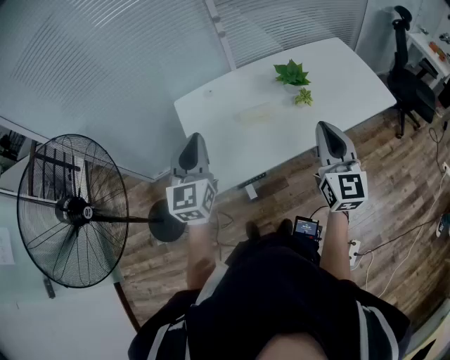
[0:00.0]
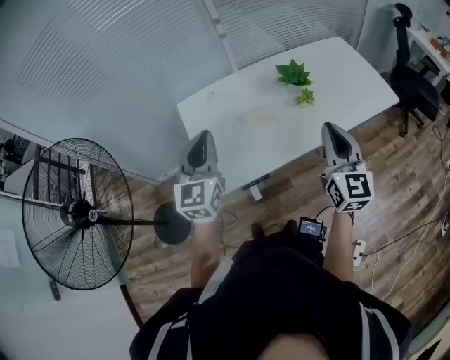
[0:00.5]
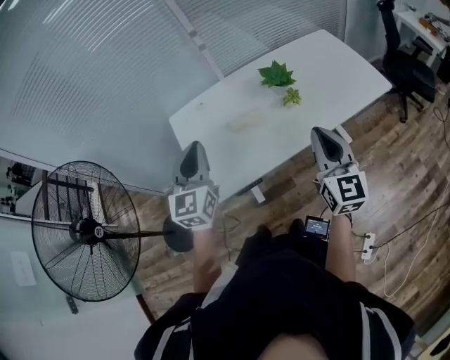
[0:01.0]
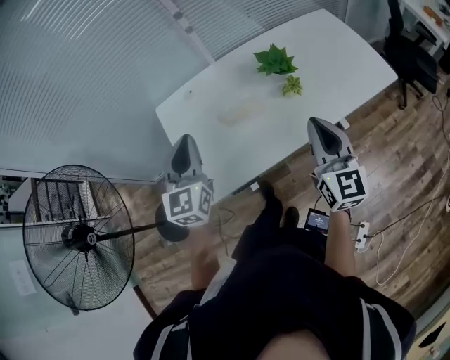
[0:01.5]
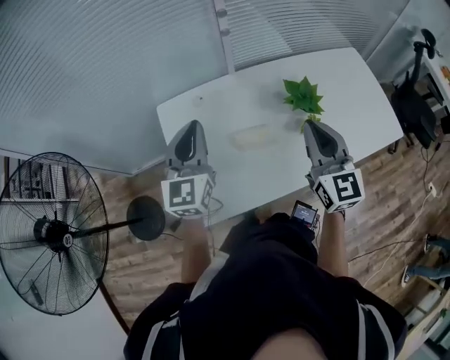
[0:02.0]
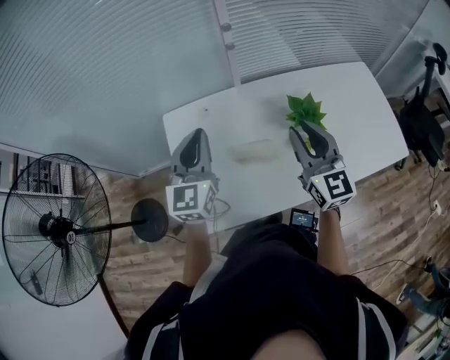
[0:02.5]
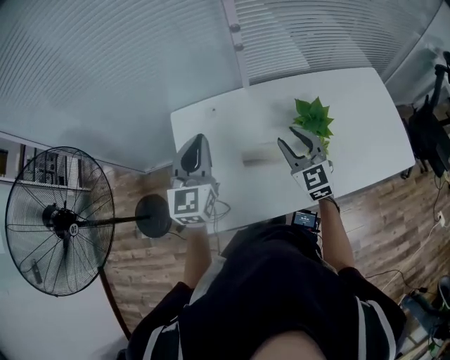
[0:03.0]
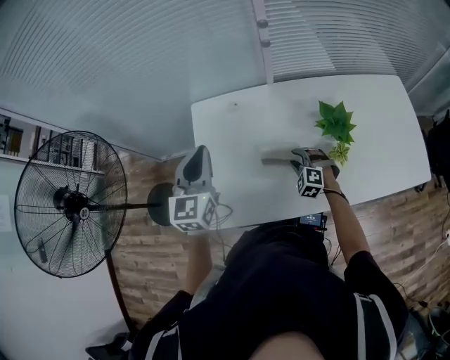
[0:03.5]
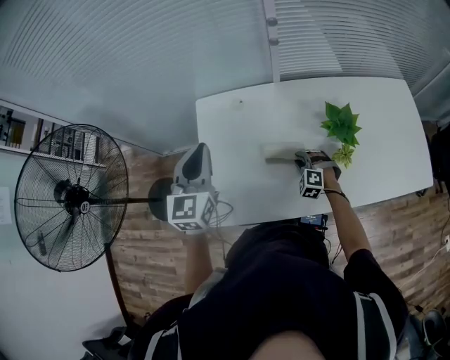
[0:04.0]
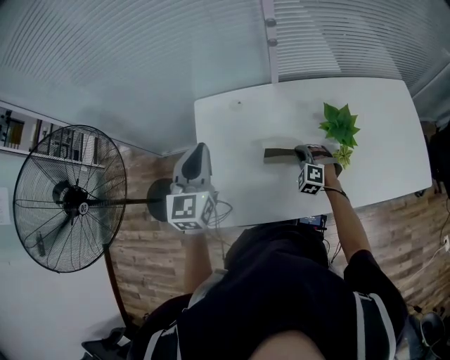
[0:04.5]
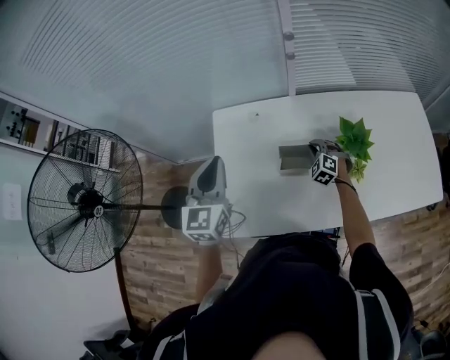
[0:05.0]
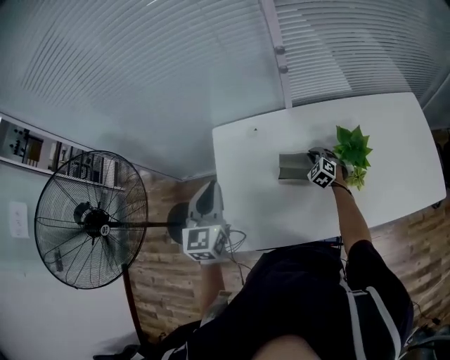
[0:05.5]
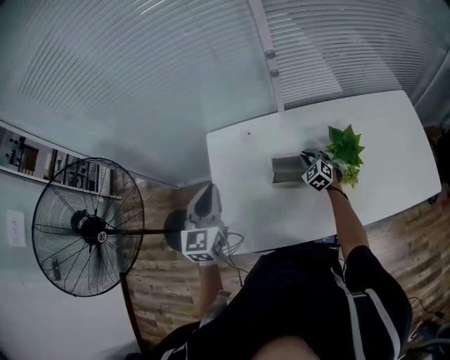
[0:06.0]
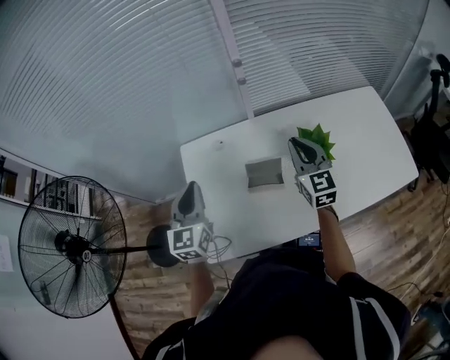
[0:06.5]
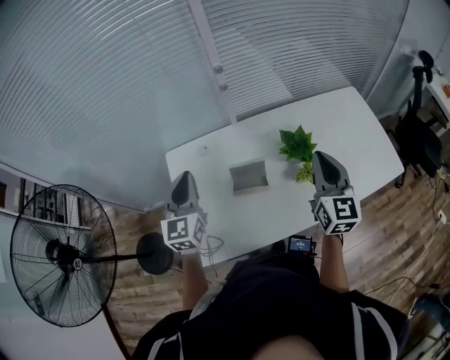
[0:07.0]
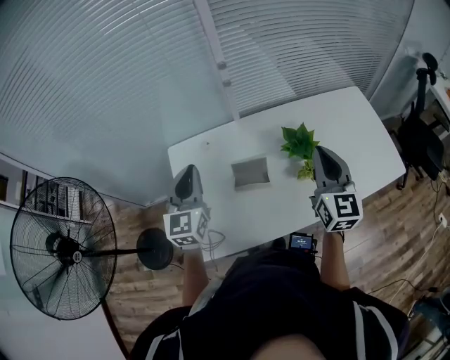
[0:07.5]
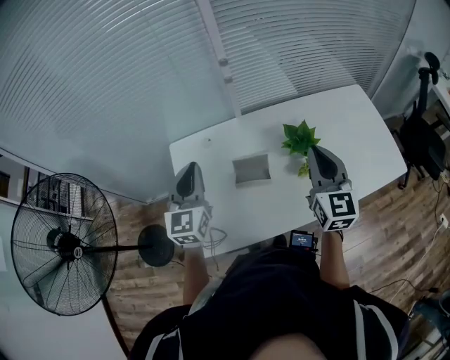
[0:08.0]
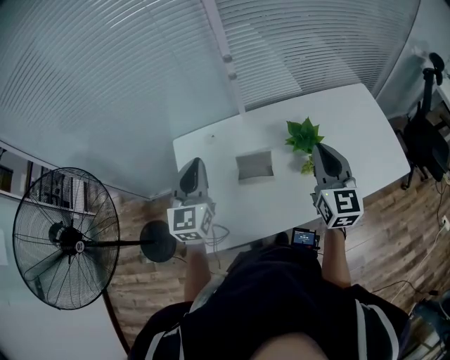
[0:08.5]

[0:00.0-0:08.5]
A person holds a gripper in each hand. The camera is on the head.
0:00.0 to 0:02.0: The two grippers go about 20 cm forward.
0:02.0 to 0:04.0: The right gripper is displaced downward by roughly 35 cm, tilts its fingers about 50 degrees downward, and opens, while the left gripper shifts approximately 5 cm to the left.
0:04.0 to 0:06.5: The right gripper shifts some 30 cm upward, and tips its fingers upward by approximately 40 degrees.
0:06.5 to 0:08.5: The right gripper is displaced backward, to the right and upward by roughly 15 cm, while the left gripper is displaced to the right by approximately 5 cm.

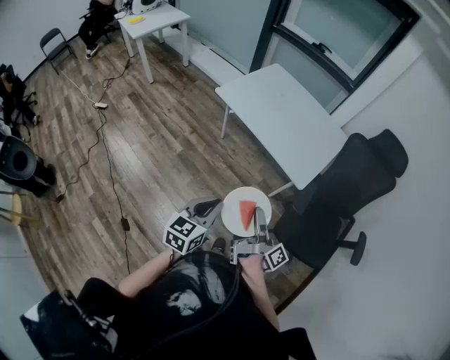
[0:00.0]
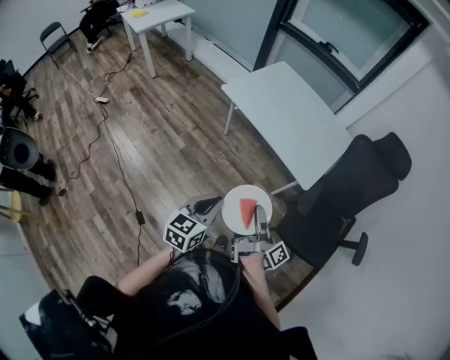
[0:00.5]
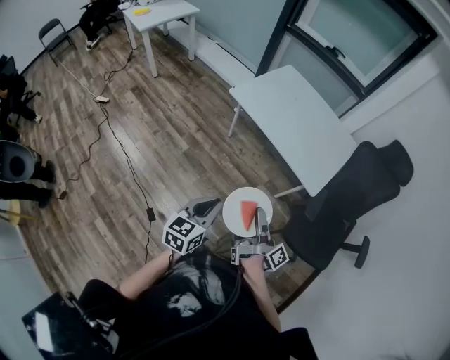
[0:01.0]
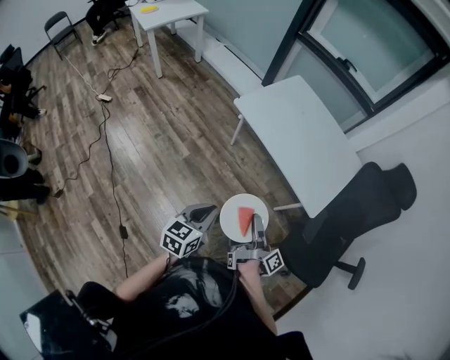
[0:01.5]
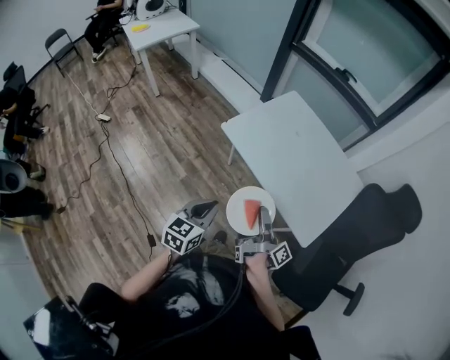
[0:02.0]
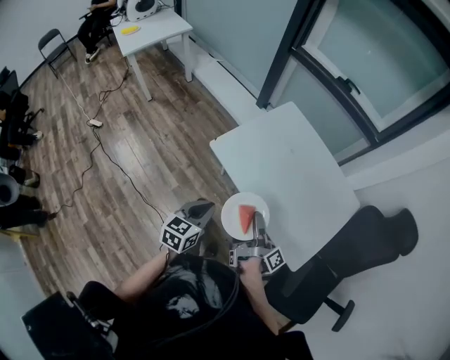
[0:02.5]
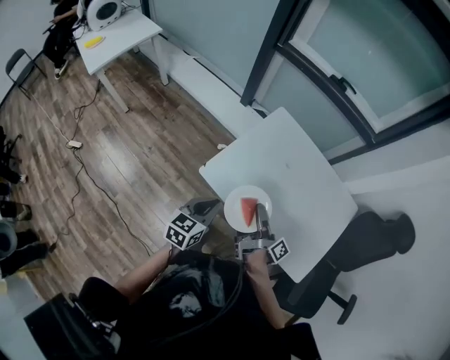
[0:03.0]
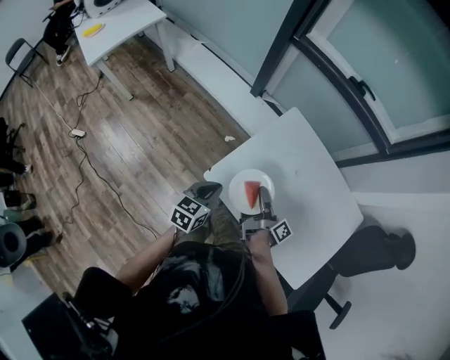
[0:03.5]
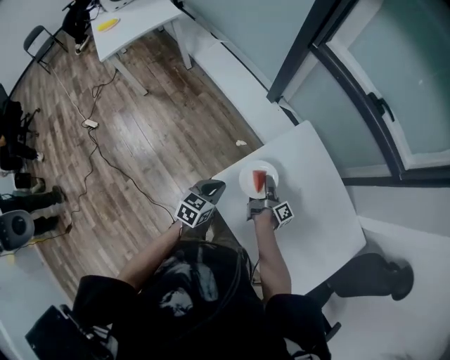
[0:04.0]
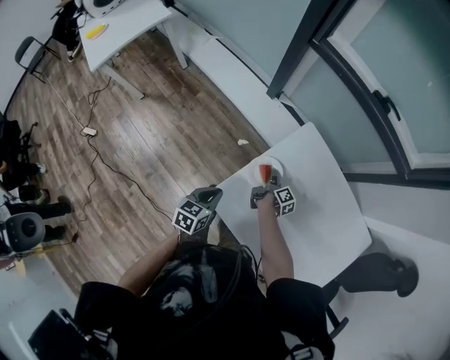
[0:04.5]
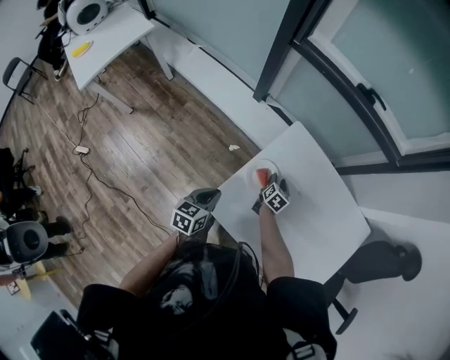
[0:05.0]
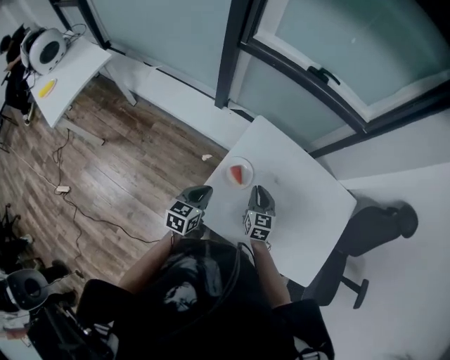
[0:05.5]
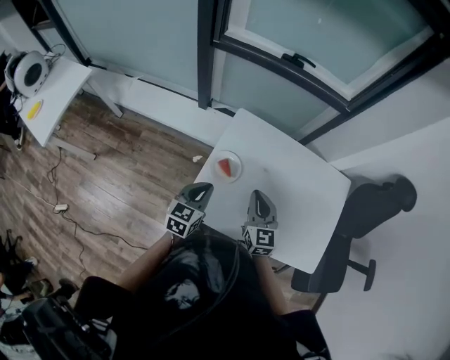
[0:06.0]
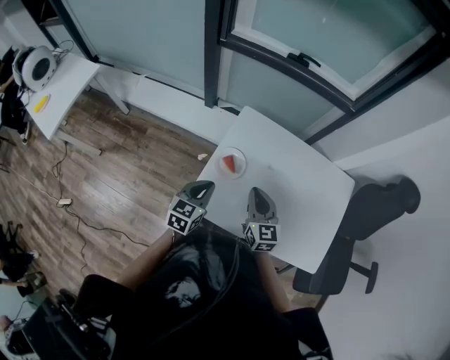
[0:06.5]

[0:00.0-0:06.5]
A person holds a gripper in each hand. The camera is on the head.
0:00.0 to 0:02.0: The left gripper shifts by some 25 cm.
0:02.0 to 0:04.5: The left gripper ends up approximately 50 cm from where it was, and swivels about 20 degrees.
0:04.5 to 0:06.5: The left gripper travels upward by about 10 cm, and changes its angle by roughly 30 degrees.

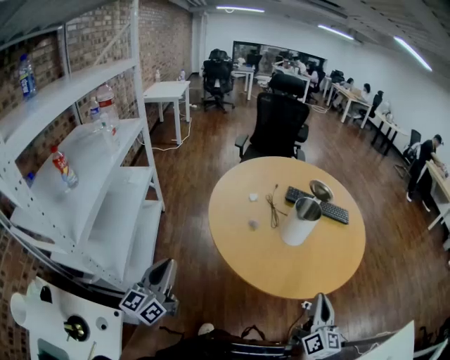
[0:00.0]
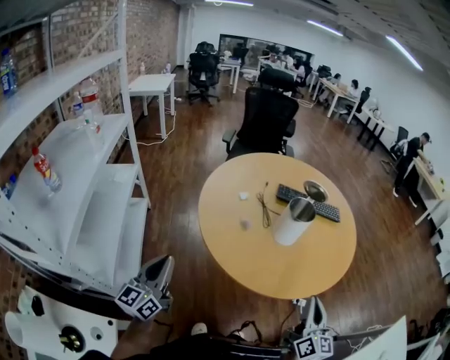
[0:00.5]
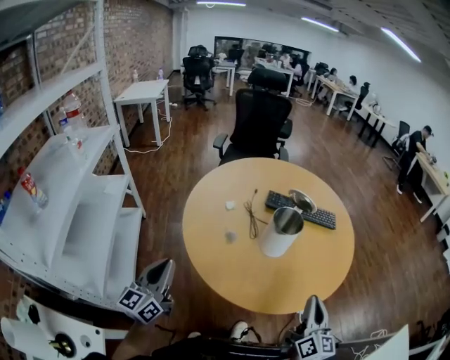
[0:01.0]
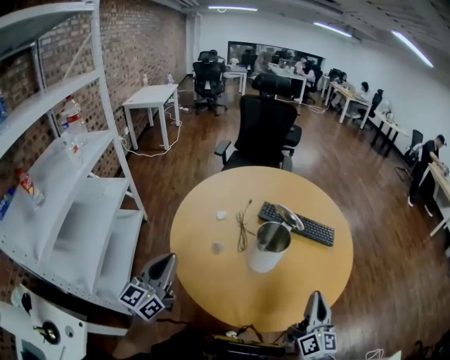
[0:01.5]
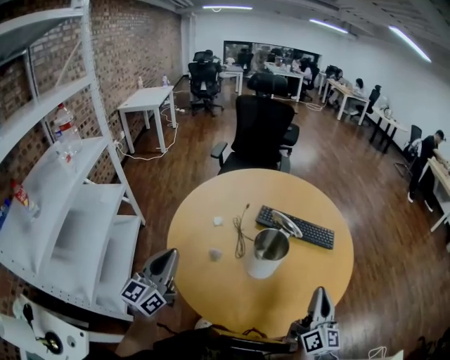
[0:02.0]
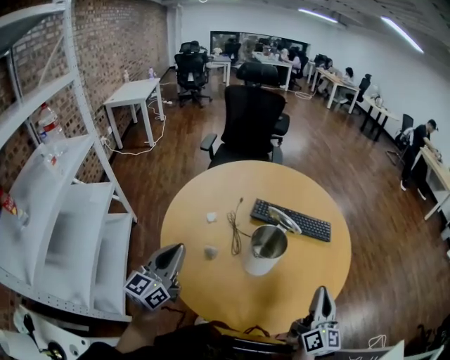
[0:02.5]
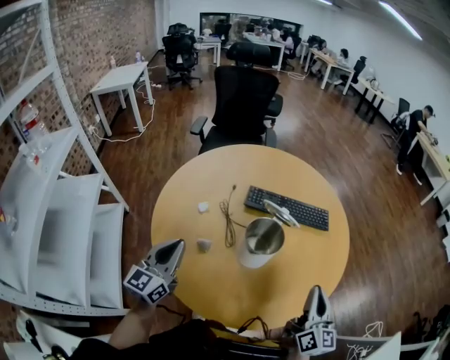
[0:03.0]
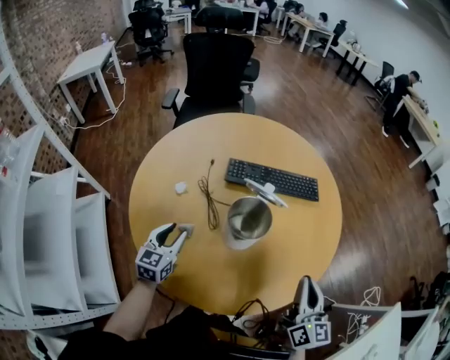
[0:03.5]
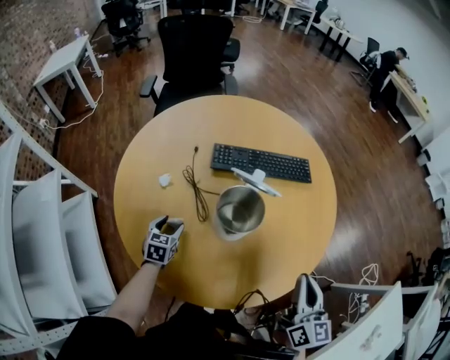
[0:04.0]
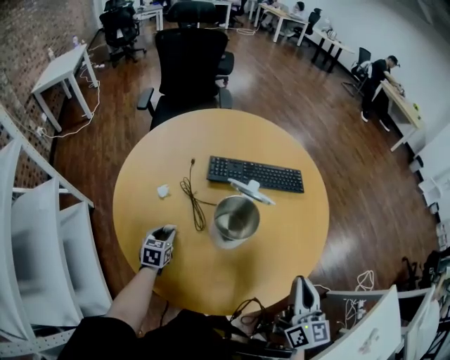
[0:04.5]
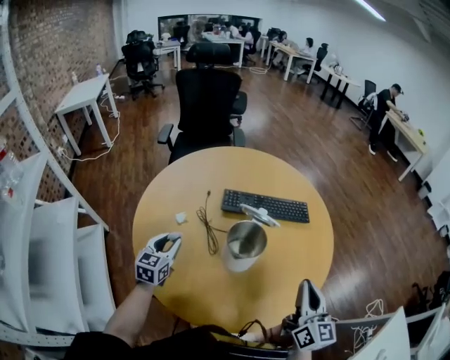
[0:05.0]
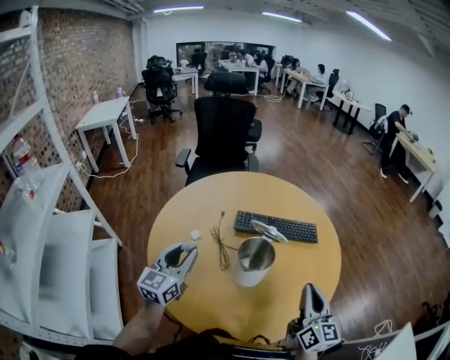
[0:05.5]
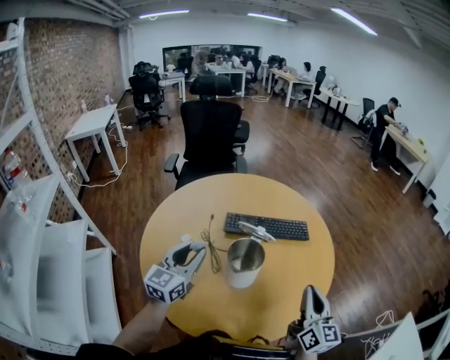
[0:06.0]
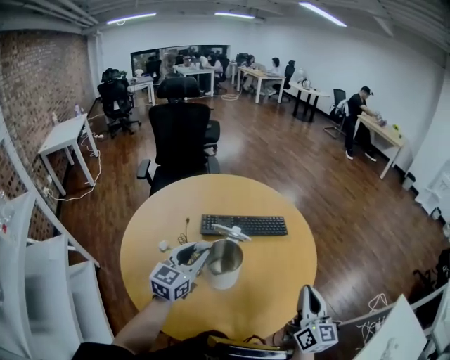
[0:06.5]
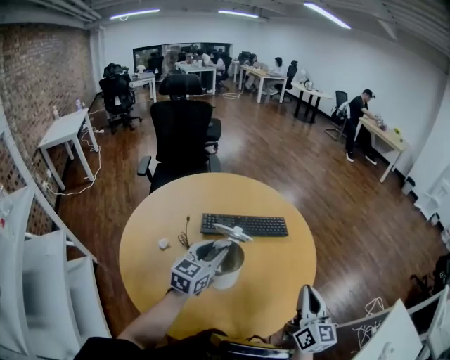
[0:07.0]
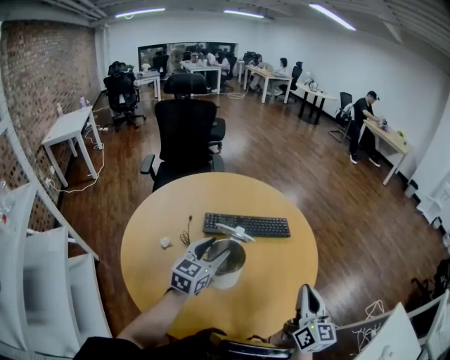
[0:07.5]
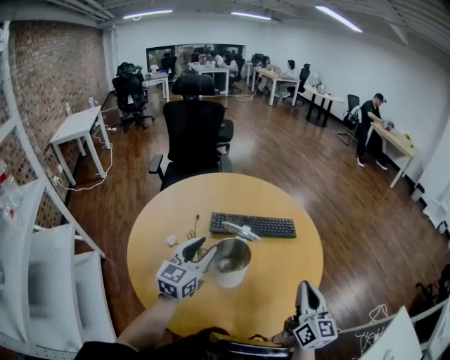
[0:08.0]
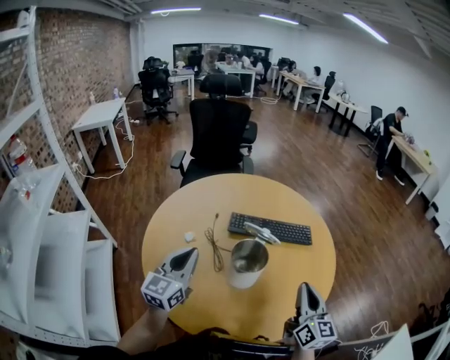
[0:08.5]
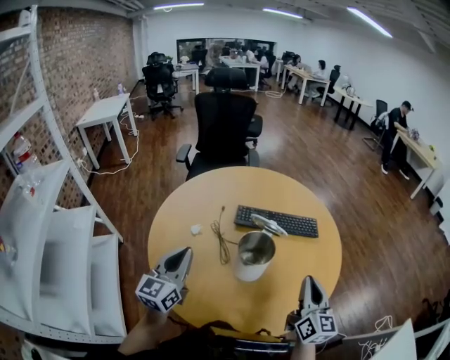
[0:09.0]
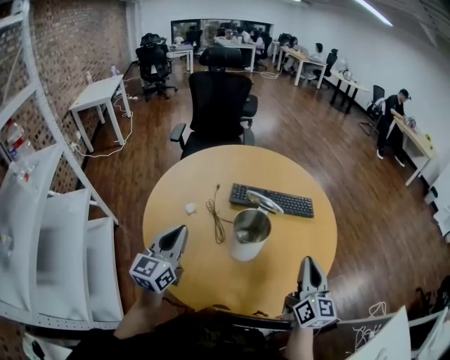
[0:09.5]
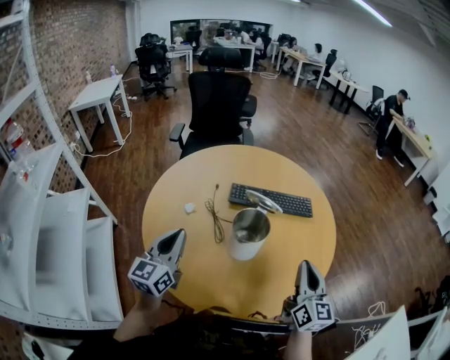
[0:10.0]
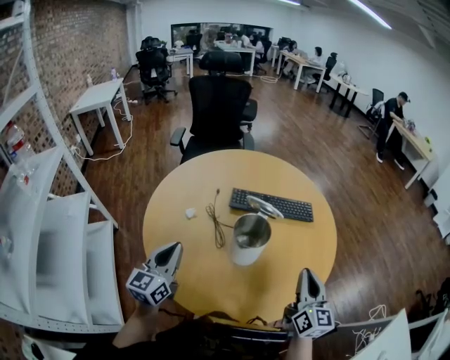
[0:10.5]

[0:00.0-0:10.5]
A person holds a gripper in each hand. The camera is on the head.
0:00.0 to 0:02.0: Both grippers travel together forward and to the right, about 25 cm.
0:02.0 to 0:04.0: The right gripper ends up approximately 5 cm from where it was, and turns by about 20 degrees. The left gripper heads downward and forward, covering some 35 cm, angles its fingers downward, by approximately 50 degrees, and opens.
0:04.0 to 0:06.5: The right gripper shifts by approximately 5 cm. The left gripper travels upward and to the right by some 30 cm, angles its fingers upward, by about 40 degrees, and closes.
0:06.5 to 0:08.5: The left gripper heads to the left and backward, covering approximately 10 cm, and closes its fingers. Meanwhile the right gripper goes roughly 5 cm to the left.
0:08.5 to 0:10.5: The left gripper goes some 5 cm backward.

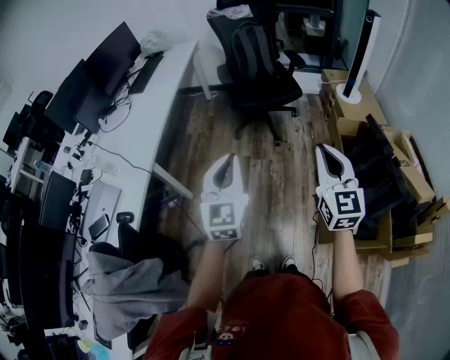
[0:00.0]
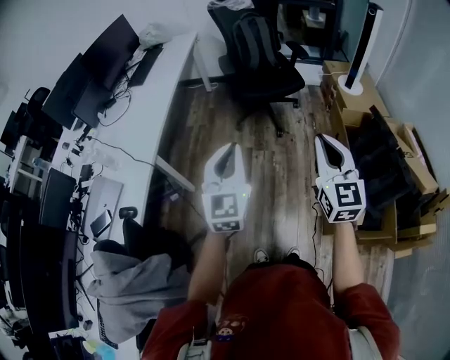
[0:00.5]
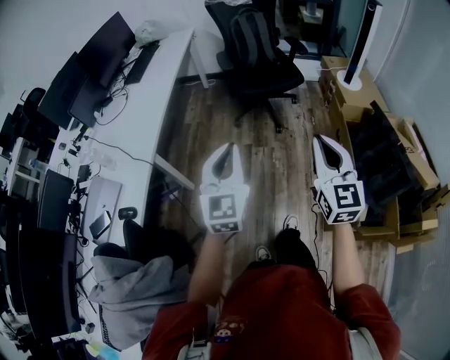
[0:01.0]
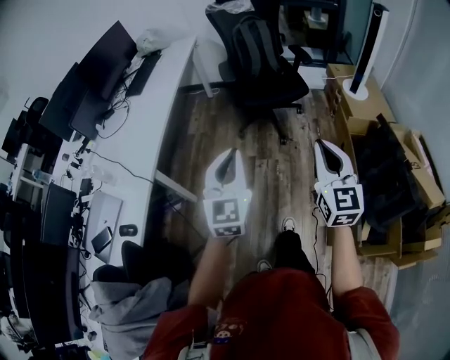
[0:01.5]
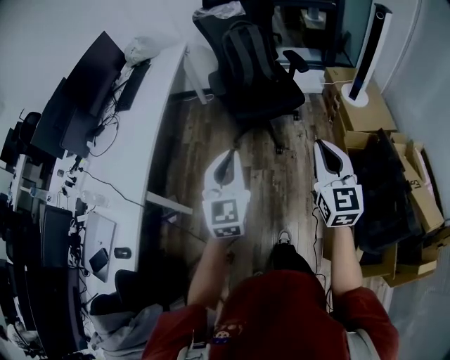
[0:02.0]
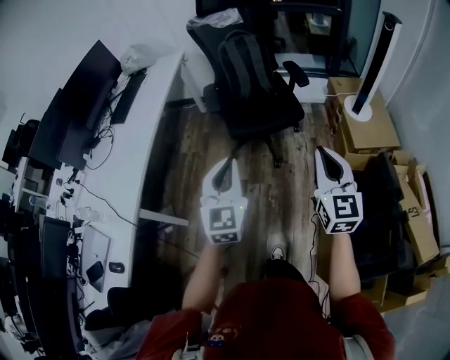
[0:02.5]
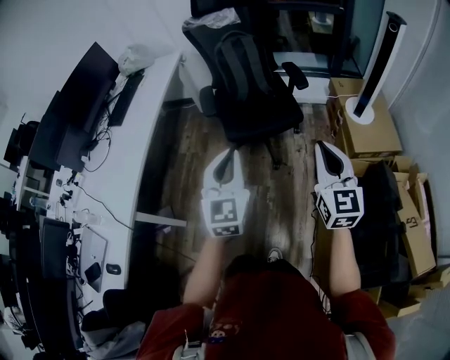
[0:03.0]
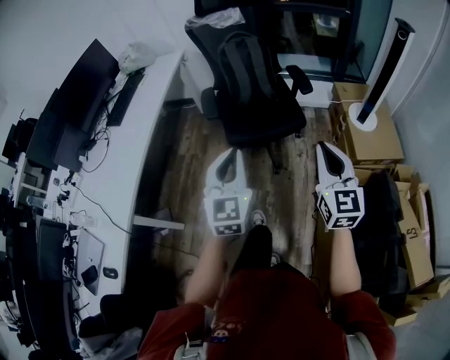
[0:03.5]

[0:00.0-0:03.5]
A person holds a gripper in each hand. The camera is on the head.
0:00.0 to 0:02.0: The two grippers go some 20 cm forward.
0:02.0 to 0:03.5: Both grippers move forward and to the right, roughly 25 cm.
